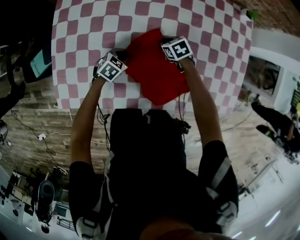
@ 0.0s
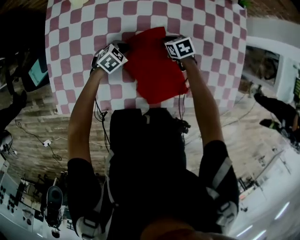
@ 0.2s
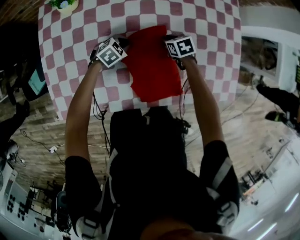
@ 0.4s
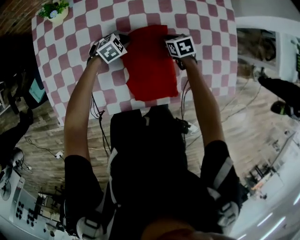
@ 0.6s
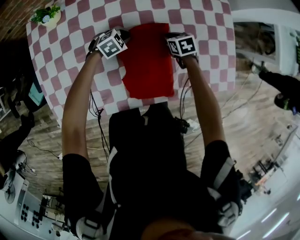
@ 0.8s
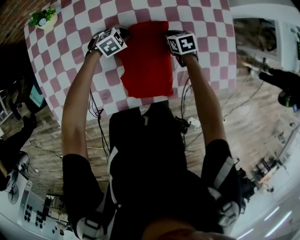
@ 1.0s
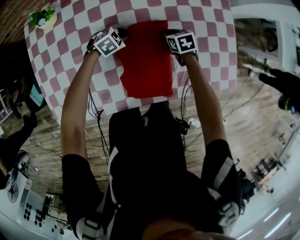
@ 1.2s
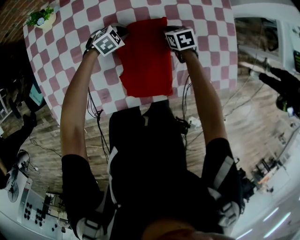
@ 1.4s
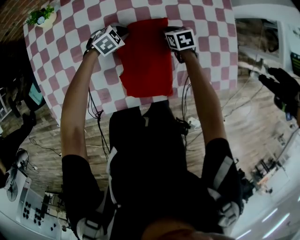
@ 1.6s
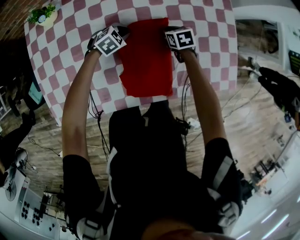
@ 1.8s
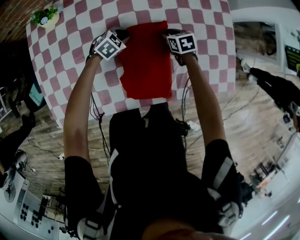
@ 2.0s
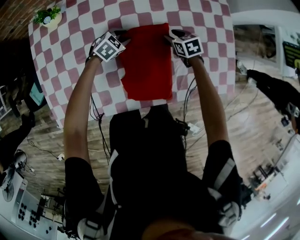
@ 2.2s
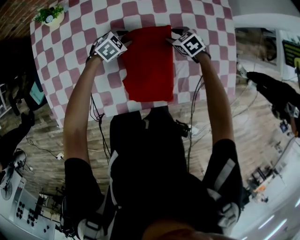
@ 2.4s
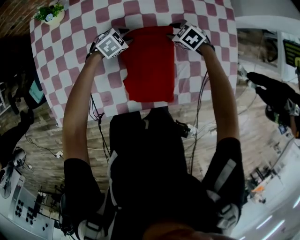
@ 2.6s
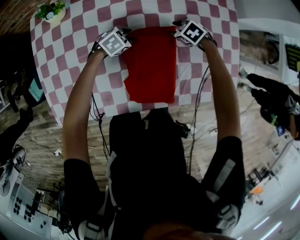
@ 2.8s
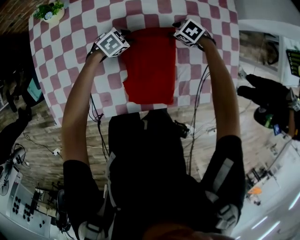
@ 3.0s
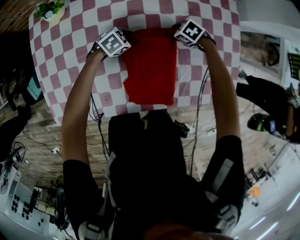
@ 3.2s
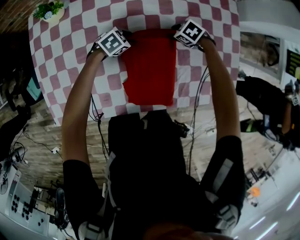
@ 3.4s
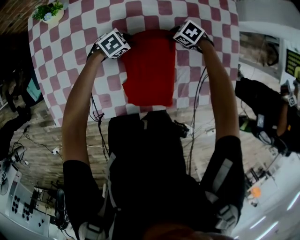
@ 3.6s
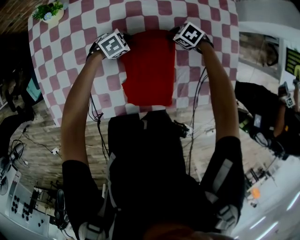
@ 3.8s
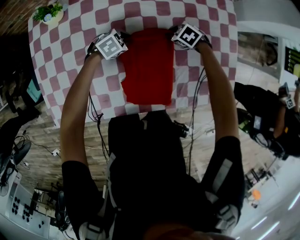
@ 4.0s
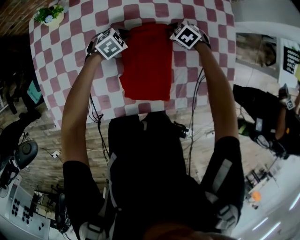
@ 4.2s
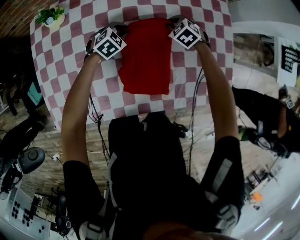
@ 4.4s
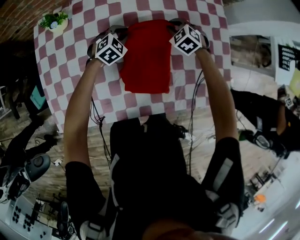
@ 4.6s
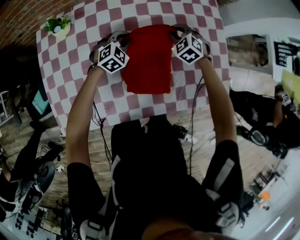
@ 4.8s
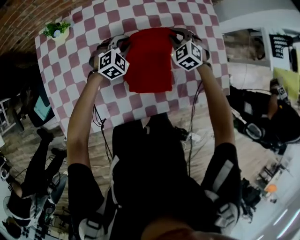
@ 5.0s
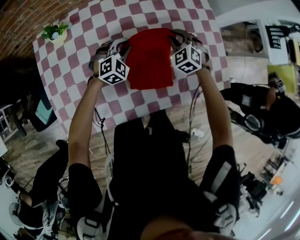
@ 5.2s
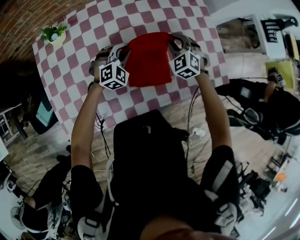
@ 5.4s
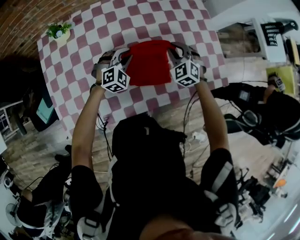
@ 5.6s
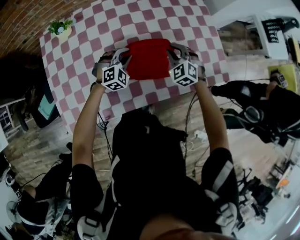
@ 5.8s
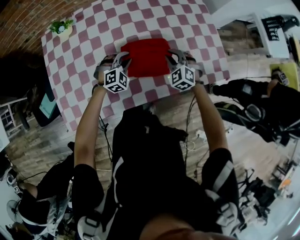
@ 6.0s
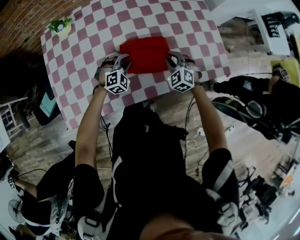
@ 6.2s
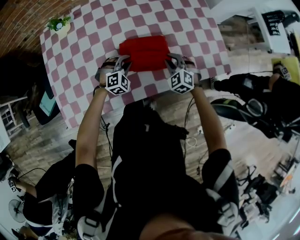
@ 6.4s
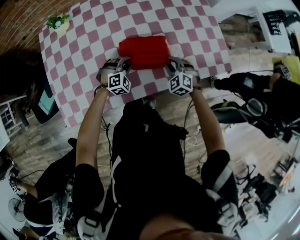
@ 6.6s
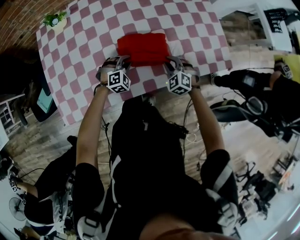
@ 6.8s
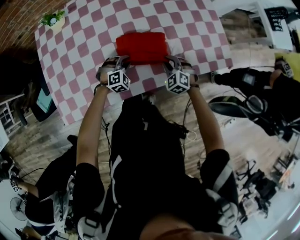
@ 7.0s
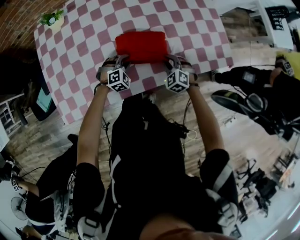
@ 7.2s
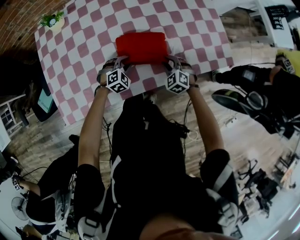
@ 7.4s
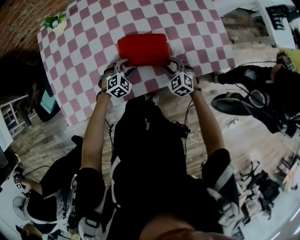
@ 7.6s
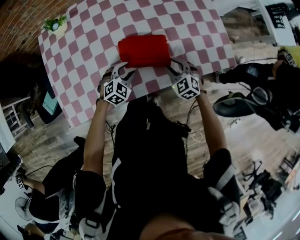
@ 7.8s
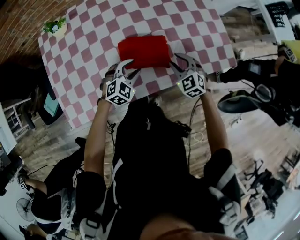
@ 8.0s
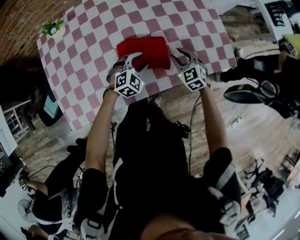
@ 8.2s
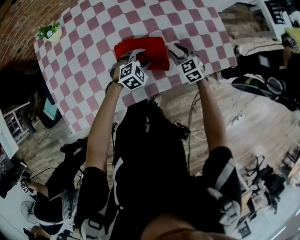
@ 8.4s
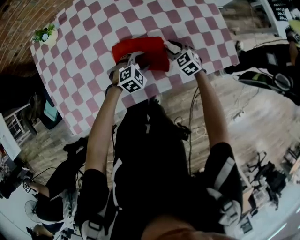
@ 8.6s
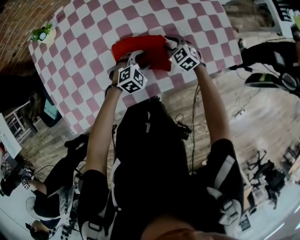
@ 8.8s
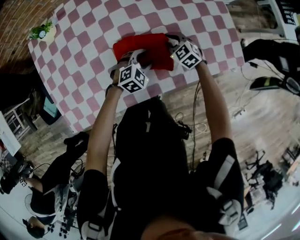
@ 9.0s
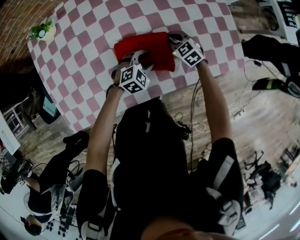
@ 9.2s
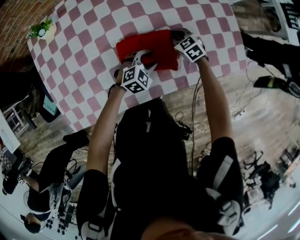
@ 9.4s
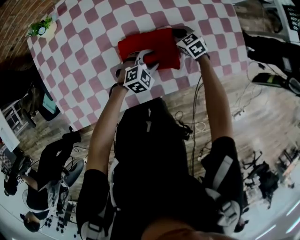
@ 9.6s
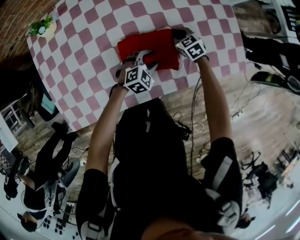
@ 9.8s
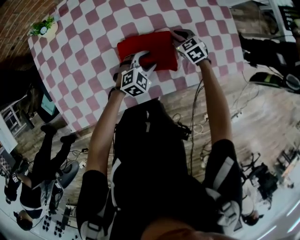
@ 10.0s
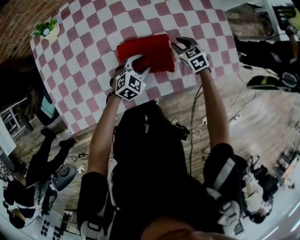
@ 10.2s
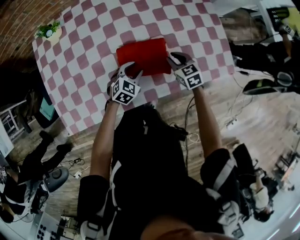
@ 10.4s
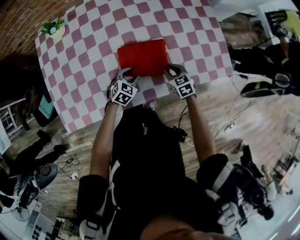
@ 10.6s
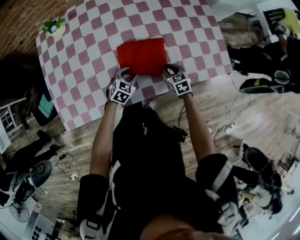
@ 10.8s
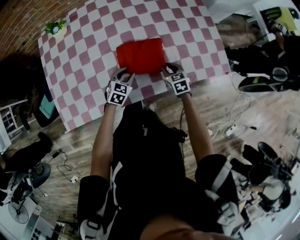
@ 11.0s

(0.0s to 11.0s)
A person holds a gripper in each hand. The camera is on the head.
0.0s - 1.6s: The left gripper shifts some 20 cm forward and to the right, and swivels roughly 30 degrees, while the right gripper shifts some 20 cm to the right, and changes its angle by about 30 degrees.
1.6s - 3.2s: The right gripper swivels roughly 50 degrees, and opens up; the left gripper opens its fingers.
3.2s - 4.8s: The two grippers go approximately 15 cm upward. The right gripper rotates some 40 degrees, and closes up; the left gripper changes its angle by some 40 degrees, and closes up.
4.8s - 6.2s: Both grippers travel together backward, about 20 cm.
6.2s - 7.8s: The grippers both shift backward by roughly 10 cm. The left gripper travels downward and back again, approximately 10 cm each way, and opens its fingers.
7.8s - 9.4s: The left gripper moves to the right and forward, approximately 10 cm; the right gripper goes some 20 cm forward and downward, and closes its fingers.
9.4s - 11.0s: The left gripper travels to the left and backward by some 10 cm, and swivels approximately 30 degrees, while the right gripper heads backward, covering roughly 15 cm.

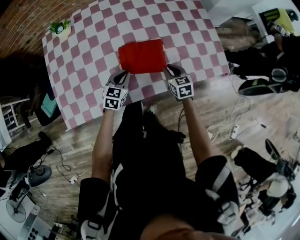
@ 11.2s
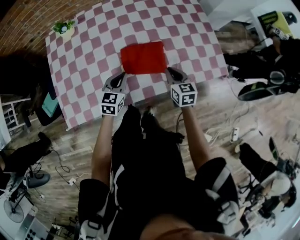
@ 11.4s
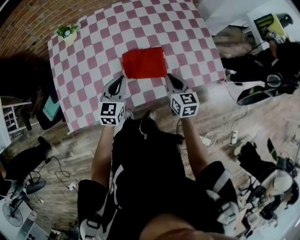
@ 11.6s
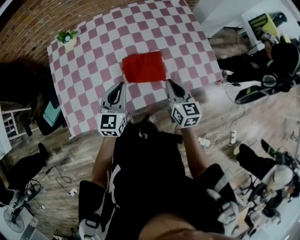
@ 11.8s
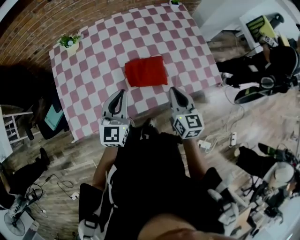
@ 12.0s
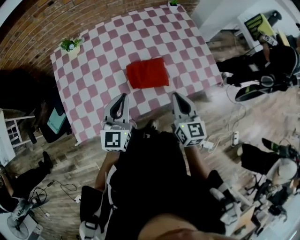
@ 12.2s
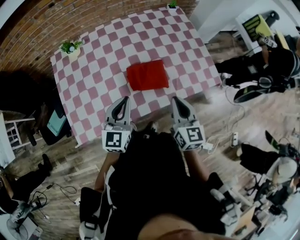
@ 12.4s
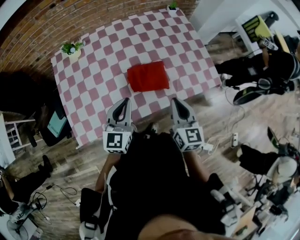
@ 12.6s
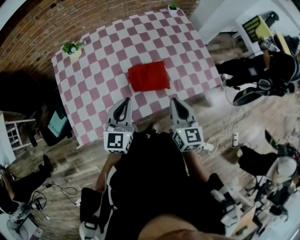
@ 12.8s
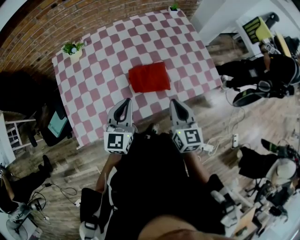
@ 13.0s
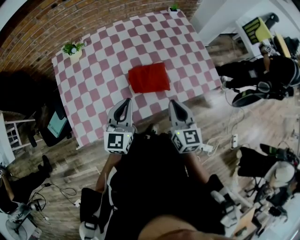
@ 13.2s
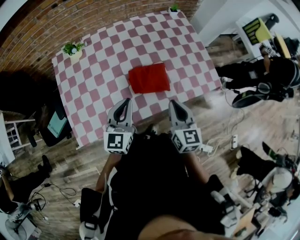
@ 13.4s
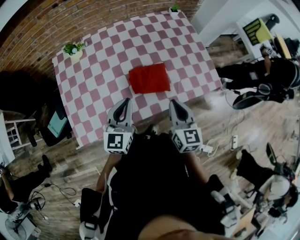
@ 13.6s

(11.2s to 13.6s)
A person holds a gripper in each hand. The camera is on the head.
11.2s - 12.4s: The left gripper goes some 25 cm upward, and changes its angle by some 20 degrees; the right gripper goes some 30 cm upward and backward, and changes its angle by roughly 30 degrees.
12.4s - 13.6s: The grippers move only a little.

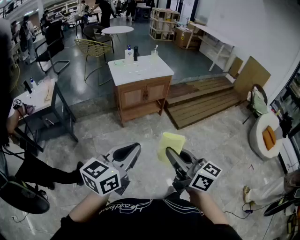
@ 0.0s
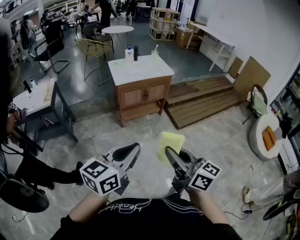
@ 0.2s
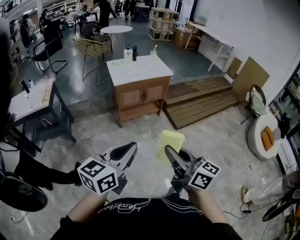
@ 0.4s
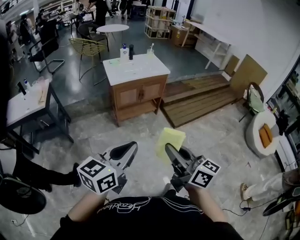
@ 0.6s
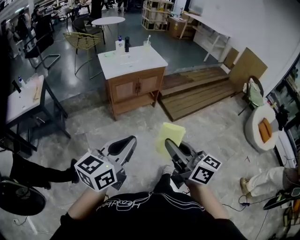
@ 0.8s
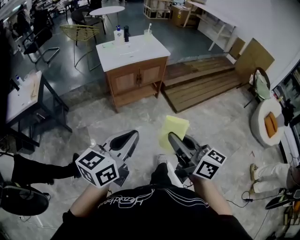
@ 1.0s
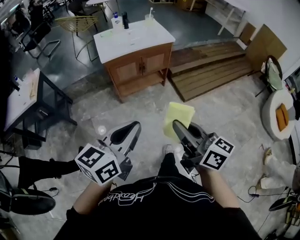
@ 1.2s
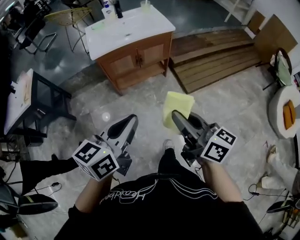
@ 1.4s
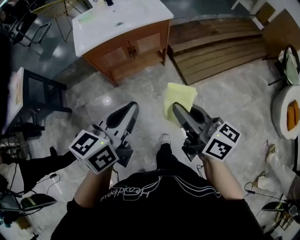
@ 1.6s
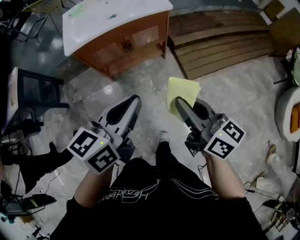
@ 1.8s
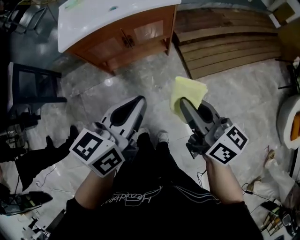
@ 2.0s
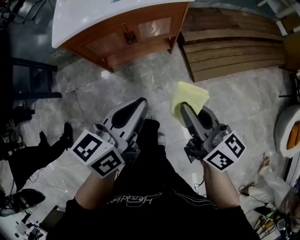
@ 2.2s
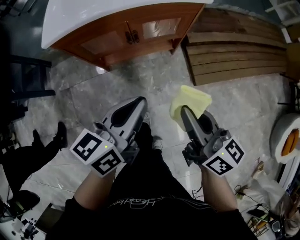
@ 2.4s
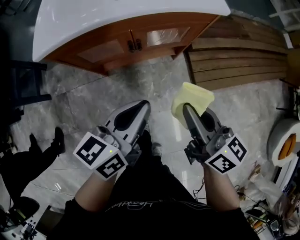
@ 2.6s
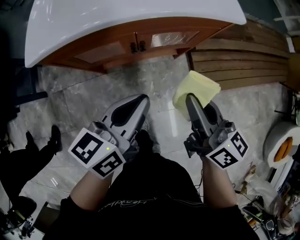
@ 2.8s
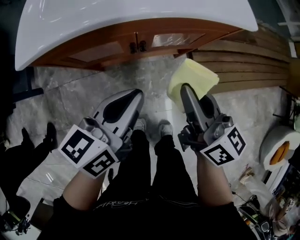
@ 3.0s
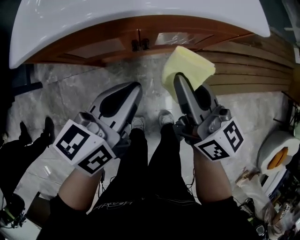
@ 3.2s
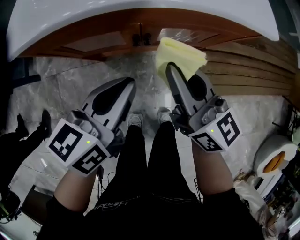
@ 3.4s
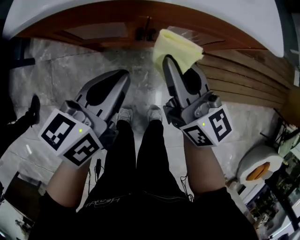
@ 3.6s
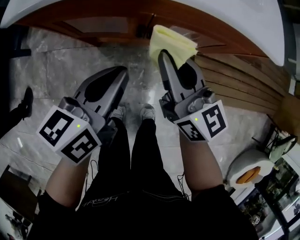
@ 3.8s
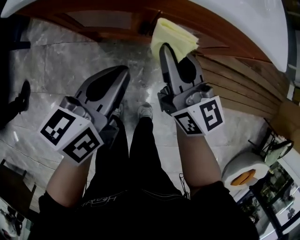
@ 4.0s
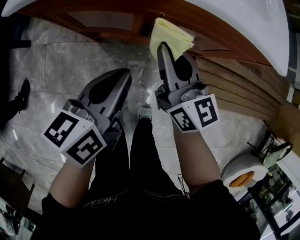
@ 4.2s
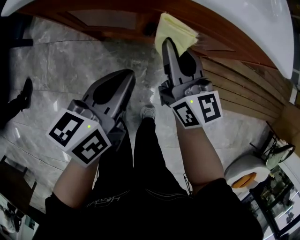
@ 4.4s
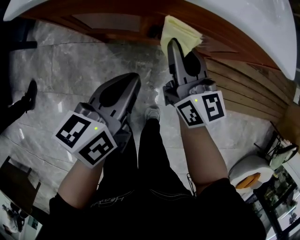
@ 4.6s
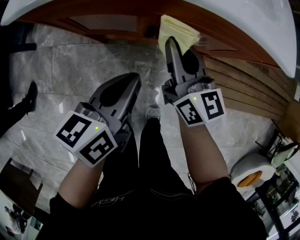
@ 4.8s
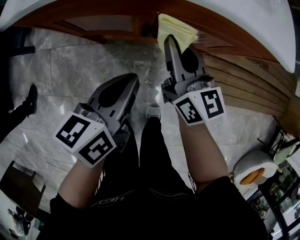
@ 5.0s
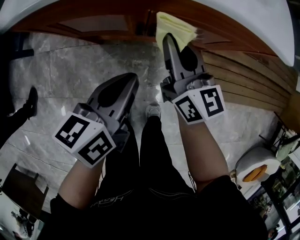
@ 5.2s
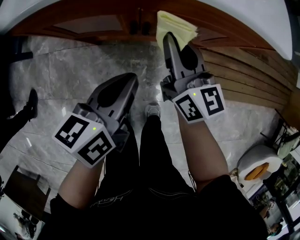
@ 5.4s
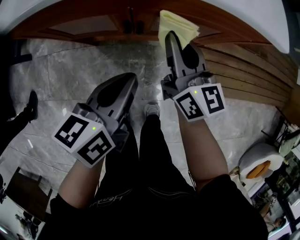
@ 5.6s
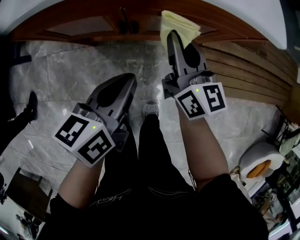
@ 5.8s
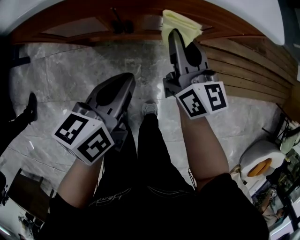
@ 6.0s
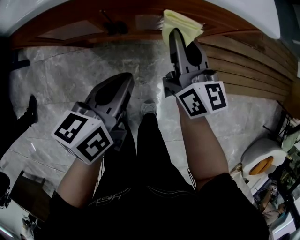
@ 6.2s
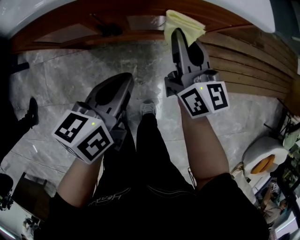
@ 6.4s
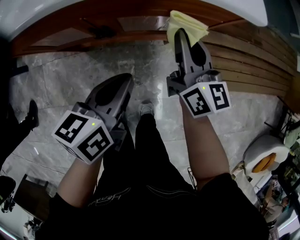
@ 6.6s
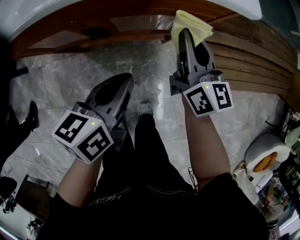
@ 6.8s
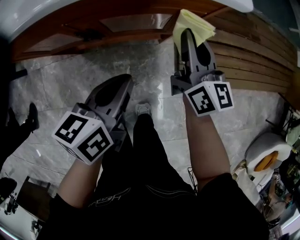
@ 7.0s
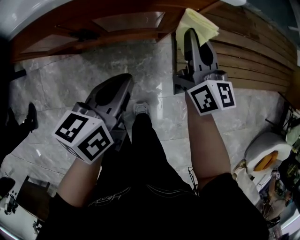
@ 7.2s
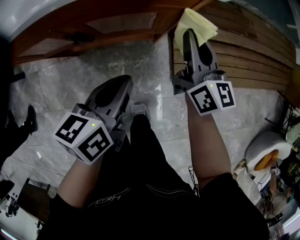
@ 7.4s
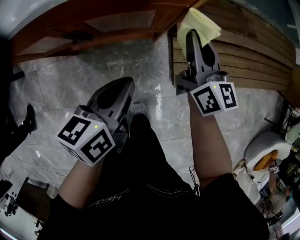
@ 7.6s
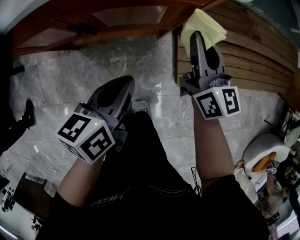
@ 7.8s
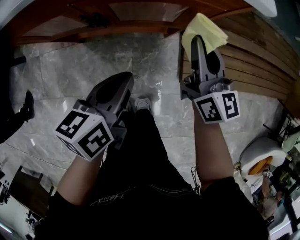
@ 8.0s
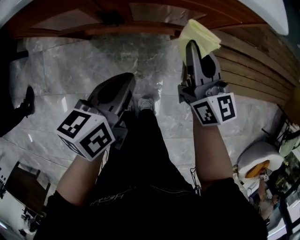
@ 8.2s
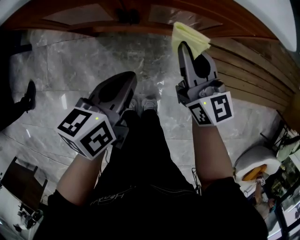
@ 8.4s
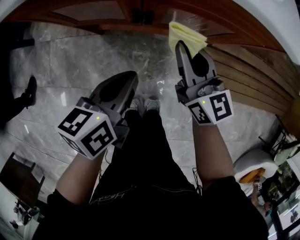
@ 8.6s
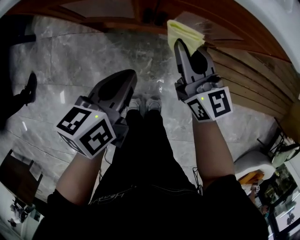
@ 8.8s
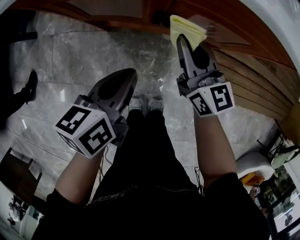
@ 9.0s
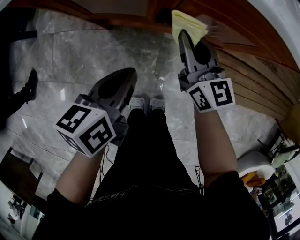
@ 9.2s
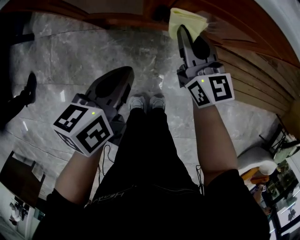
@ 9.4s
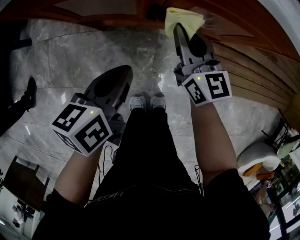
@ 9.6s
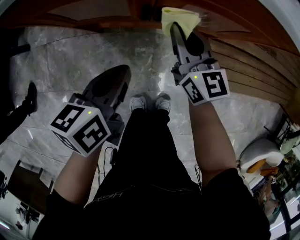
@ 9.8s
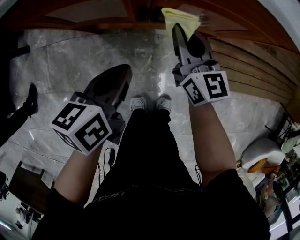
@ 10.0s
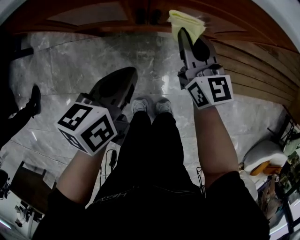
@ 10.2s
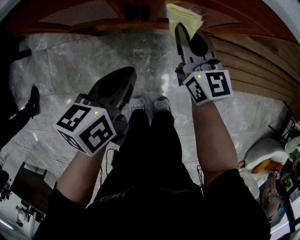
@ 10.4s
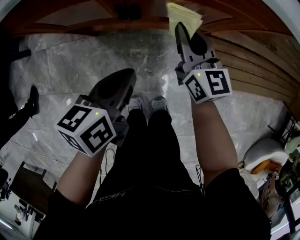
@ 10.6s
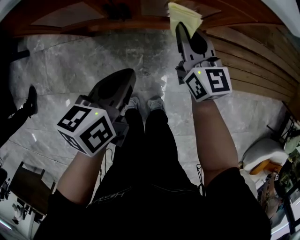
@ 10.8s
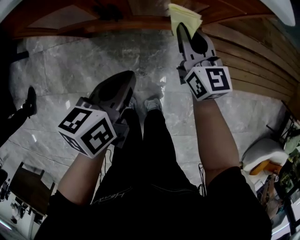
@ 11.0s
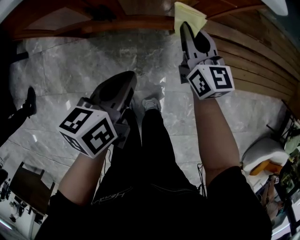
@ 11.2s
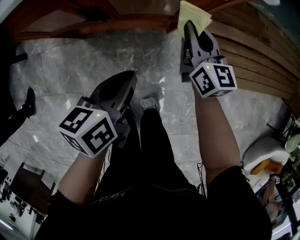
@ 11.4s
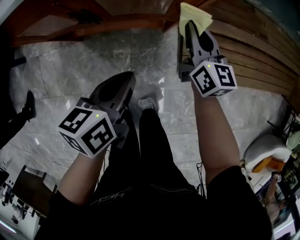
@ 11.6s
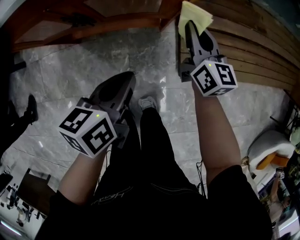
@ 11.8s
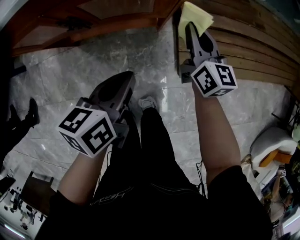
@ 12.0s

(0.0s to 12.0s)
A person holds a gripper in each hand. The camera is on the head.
0.0s - 1.6s: The grippers both shift forward and to the right by some 40 cm.
1.6s - 3.0s: The two grippers go some 40 cm forward and downward.
3.0s - 4.4s: The left gripper goes some 10 cm downward, and swivels about 20 degrees, while the right gripper heads forward, downward and to the left, covering roughly 15 cm, and changes its angle by about 20 degrees.
4.4s - 6.0s: Both grippers move to the right, roughly 10 cm.
6.0s - 7.6s: Both grippers travel together to the right, about 15 cm.
7.6s - 9.0s: The grippers both shift to the left by about 20 cm. The right gripper swivels roughly 30 degrees.
9.0s - 10.4s: The right gripper goes about 5 cm to the right.
10.4s - 12.0s: The grippers both shift to the right by approximately 20 cm.
